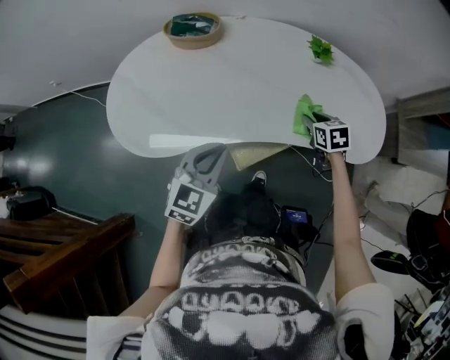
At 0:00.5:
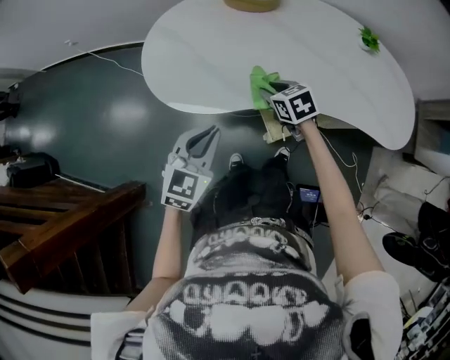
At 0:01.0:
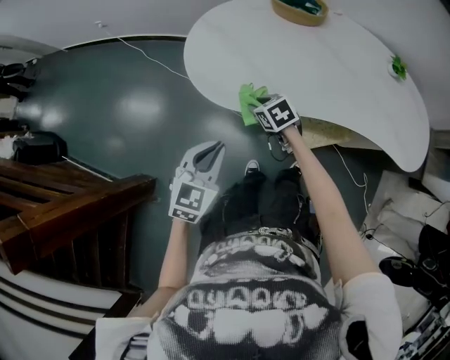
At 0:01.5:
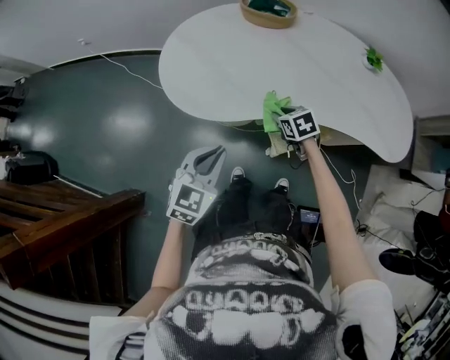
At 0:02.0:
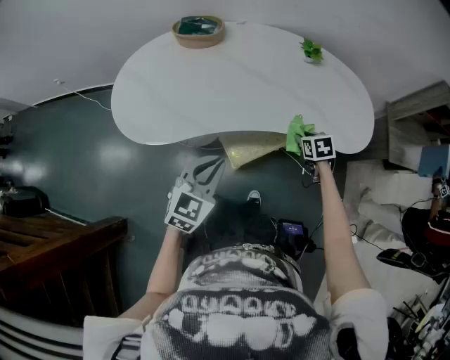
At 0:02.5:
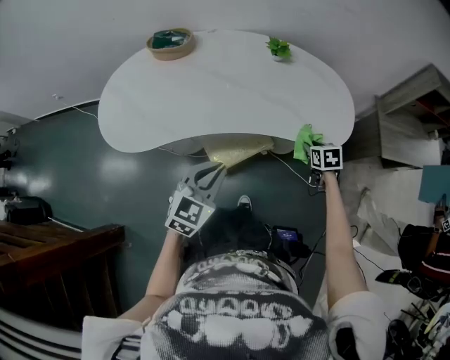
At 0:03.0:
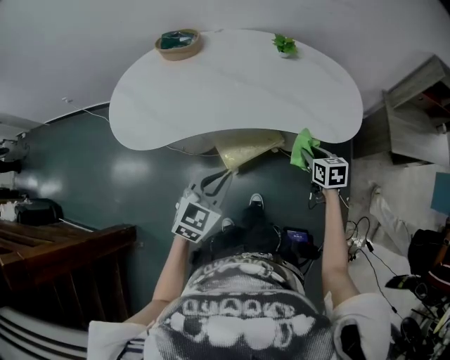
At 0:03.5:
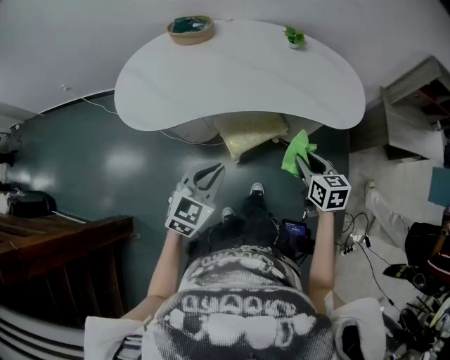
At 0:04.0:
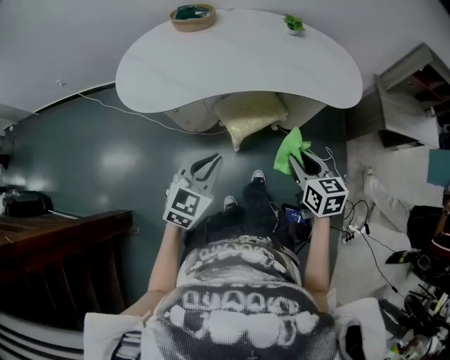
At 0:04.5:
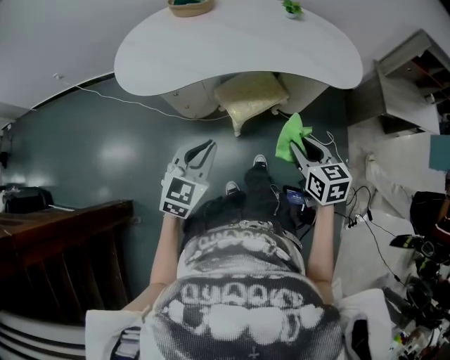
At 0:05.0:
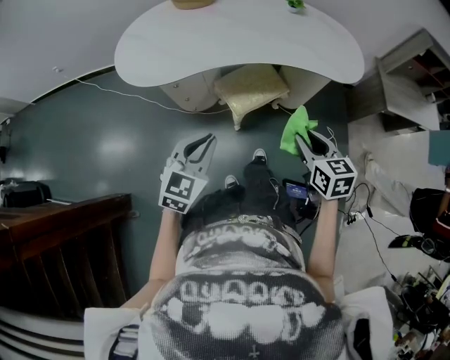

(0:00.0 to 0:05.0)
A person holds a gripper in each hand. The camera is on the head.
0:02.5 - 0:05.0: The left gripper goes roughly 25 cm backward and to the left, while the right gripper heads backward, to the left and upward, covering about 40 cm, and rotates roughly 20 degrees.

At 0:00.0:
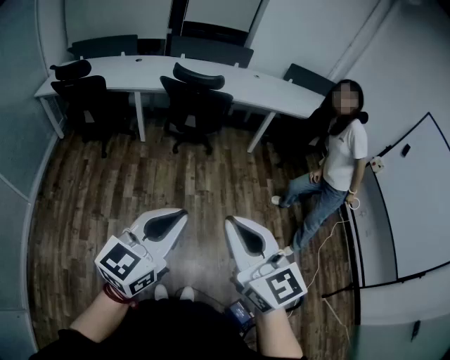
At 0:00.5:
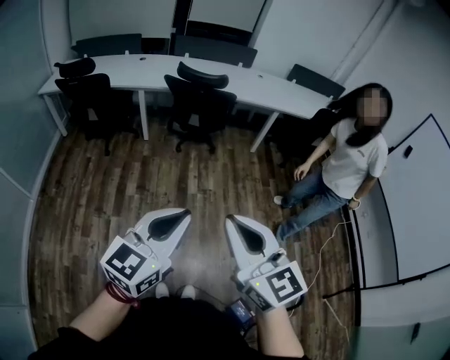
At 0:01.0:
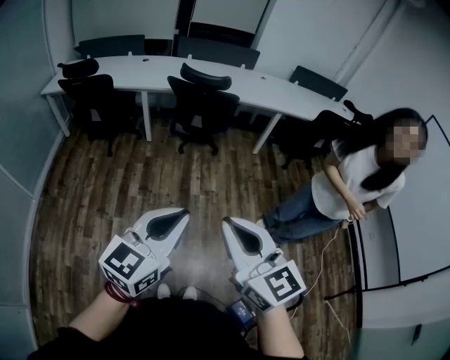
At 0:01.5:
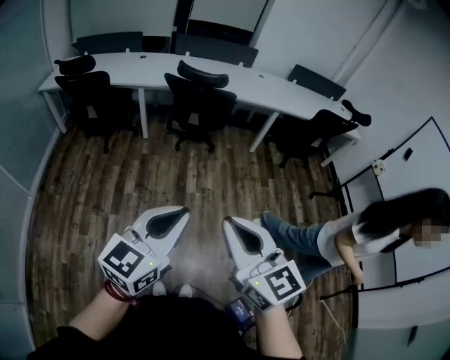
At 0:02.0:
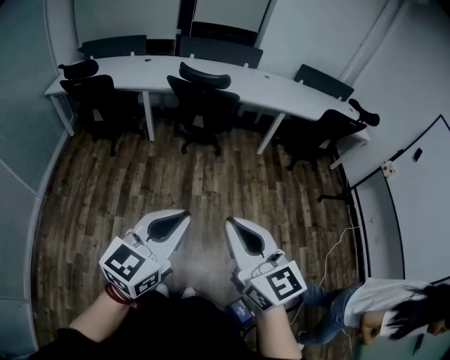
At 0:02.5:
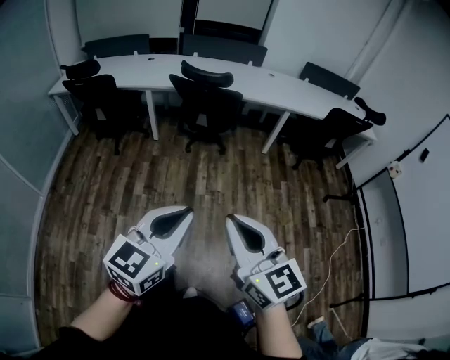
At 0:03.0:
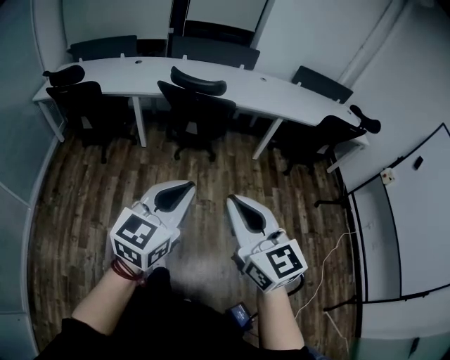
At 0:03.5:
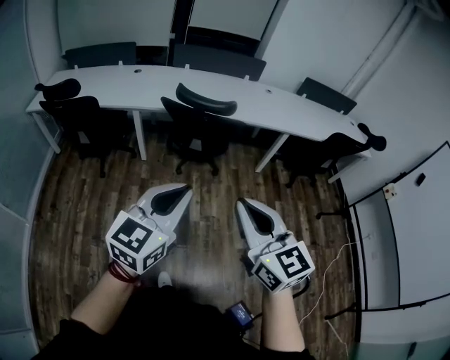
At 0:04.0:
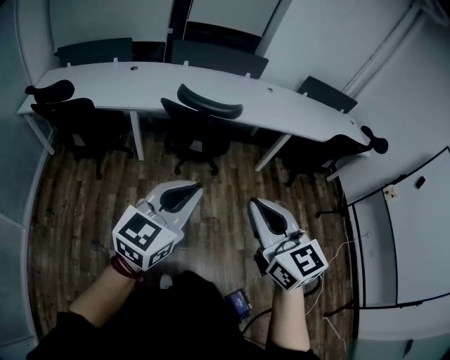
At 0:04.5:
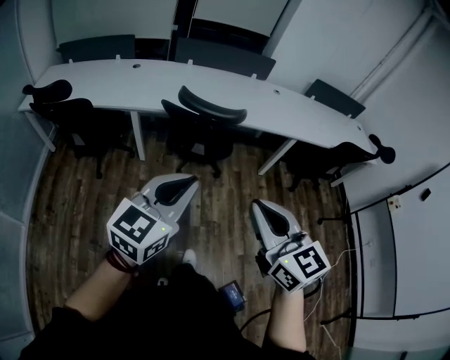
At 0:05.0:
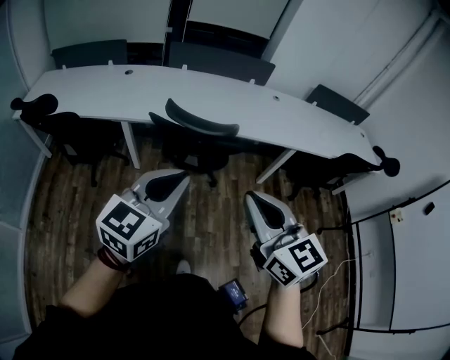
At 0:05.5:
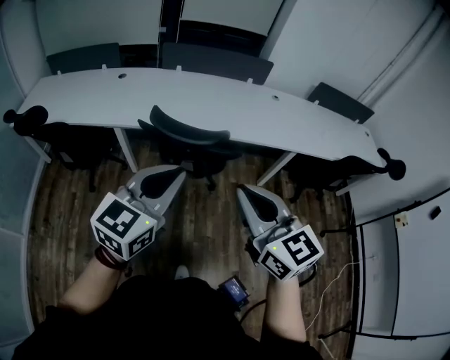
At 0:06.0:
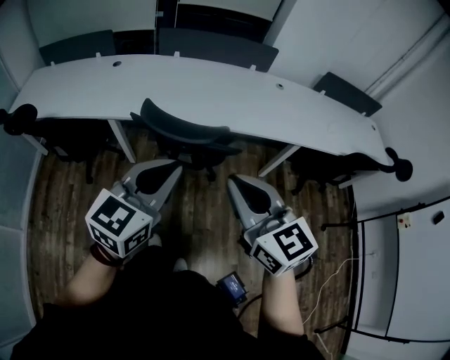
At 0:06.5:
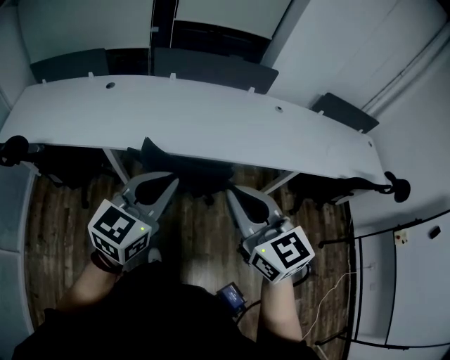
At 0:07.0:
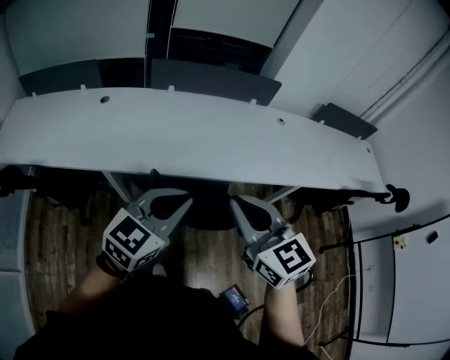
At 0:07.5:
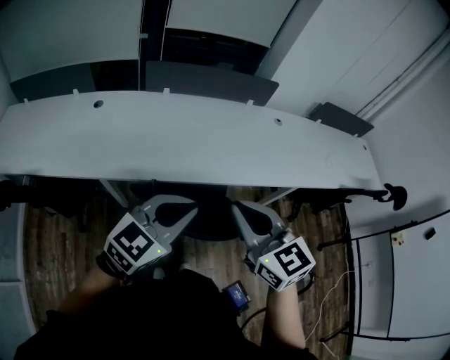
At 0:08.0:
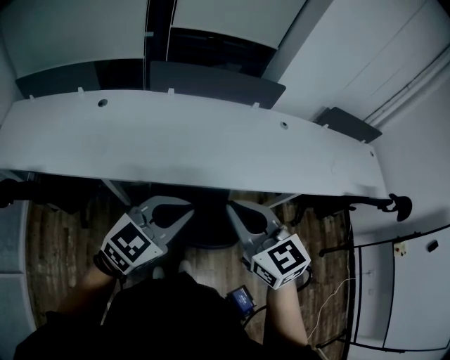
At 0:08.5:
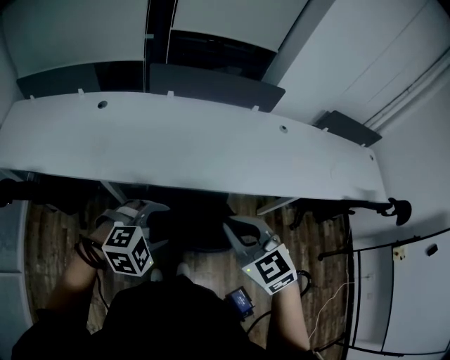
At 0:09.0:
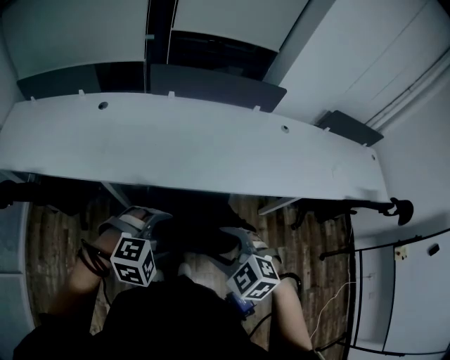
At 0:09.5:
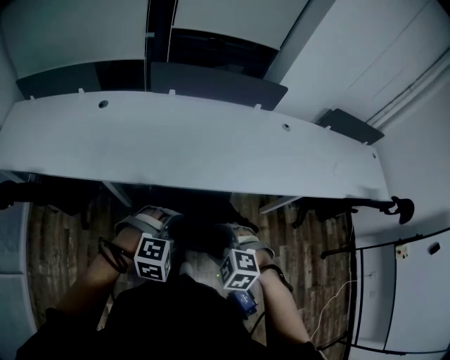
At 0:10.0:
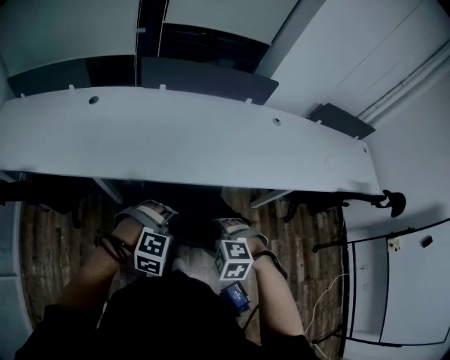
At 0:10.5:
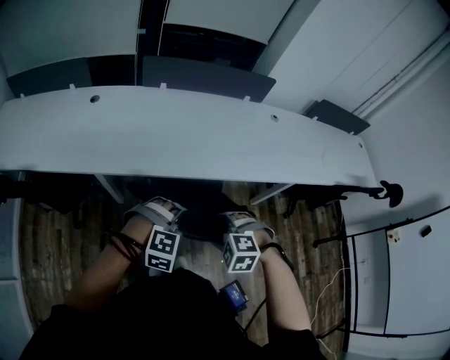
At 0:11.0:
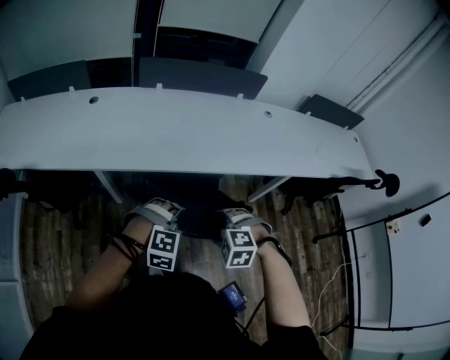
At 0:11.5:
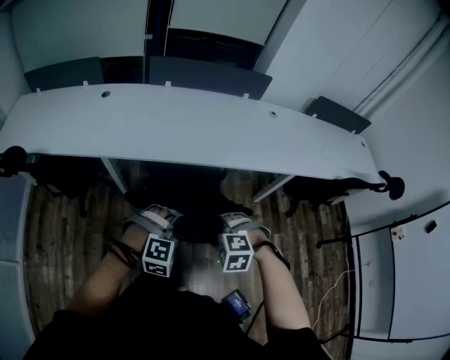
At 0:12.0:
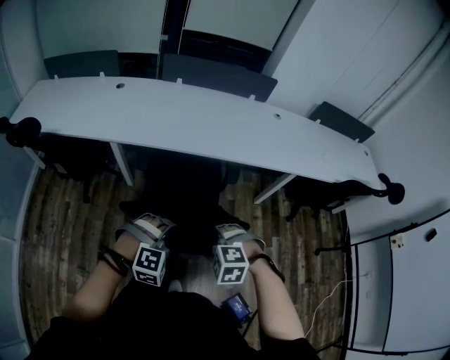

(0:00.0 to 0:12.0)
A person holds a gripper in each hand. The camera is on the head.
0:00.0 - 0:02.0: The left gripper goes approximately 5 cm to the right. The right gripper ends up about 5 cm from where it was.
0:02.0 - 0:04.0: Both grippers move forward, roughly 35 cm.
0:04.0 - 0:06.0: The grippers both shift forward by about 35 cm.
0:06.0 - 0:08.0: The right gripper moves forward and to the left, about 30 cm; the left gripper moves forward, approximately 25 cm, and swivels approximately 20 degrees.
0:08.0 - 0:10.0: The two grippers go approximately 20 cm downward. The right gripper angles its fingers downward, by about 50 degrees, and opens up. The left gripper angles its fingers downward, by some 40 degrees, and opens.
0:10.0 - 0:12.0: Both grippers travel together backward, roughly 25 cm.

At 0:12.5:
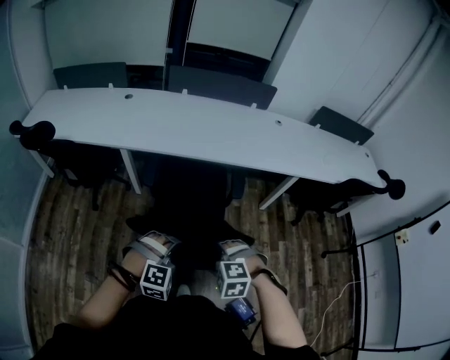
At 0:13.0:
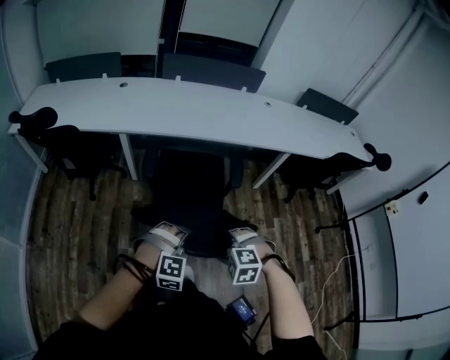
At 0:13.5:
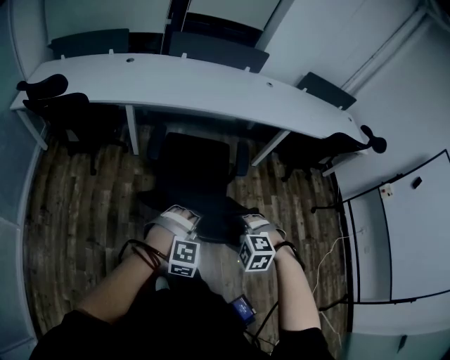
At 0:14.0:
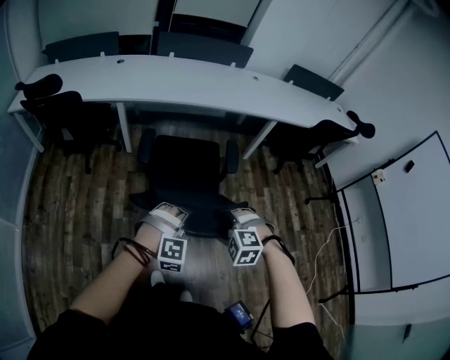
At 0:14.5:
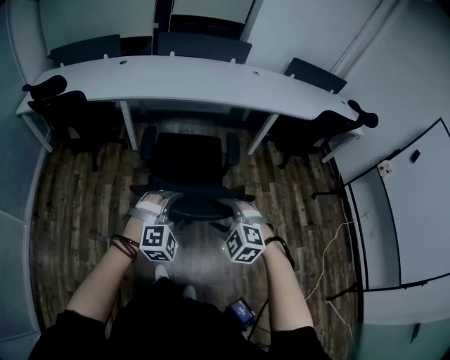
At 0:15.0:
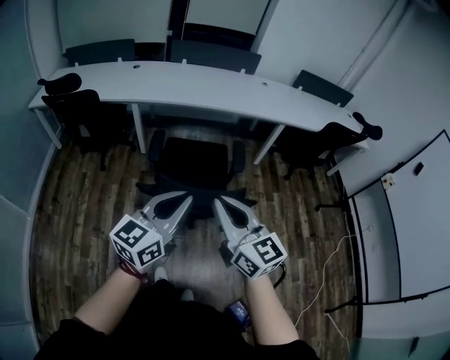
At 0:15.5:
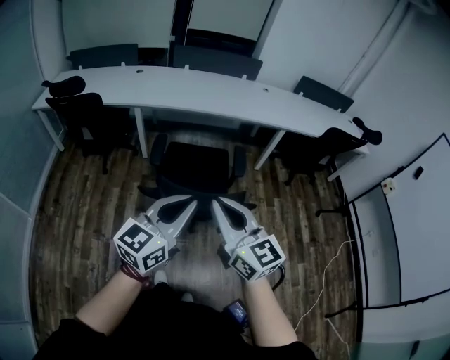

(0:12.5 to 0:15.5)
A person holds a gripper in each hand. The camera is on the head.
0:12.5 - 0:14.0: The grippers both shift backward by roughly 25 cm.
0:14.0 - 0:15.5: Both grippers move upward, approximately 25 cm. The right gripper tips its fingers upward by approximately 60 degrees, and closes. The left gripper rotates around the line of its fingers by approximately 80 degrees, counterclockwise from behind, and closes.

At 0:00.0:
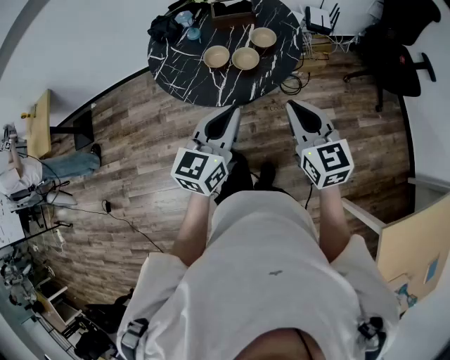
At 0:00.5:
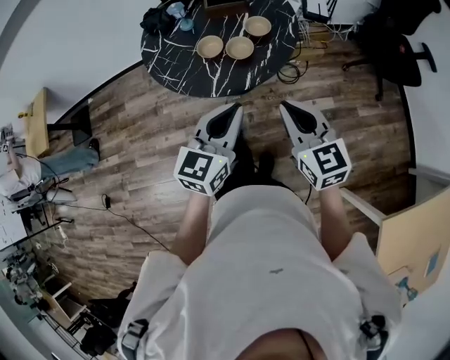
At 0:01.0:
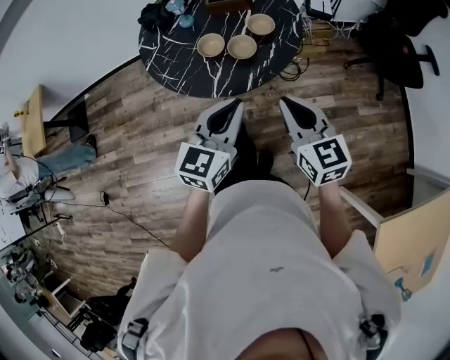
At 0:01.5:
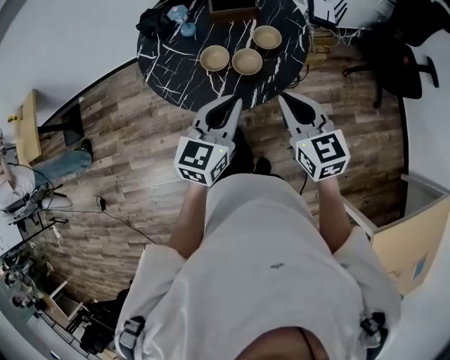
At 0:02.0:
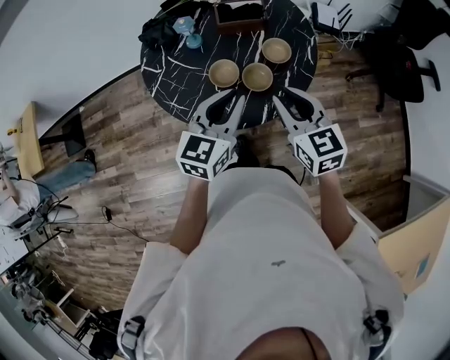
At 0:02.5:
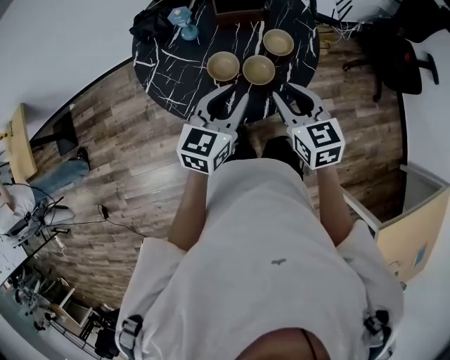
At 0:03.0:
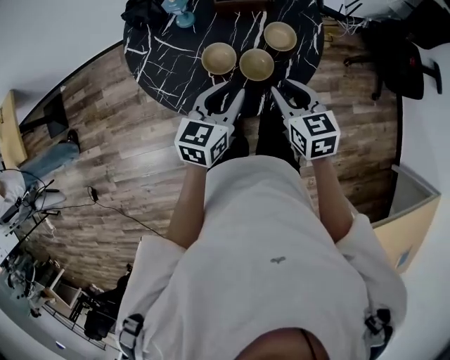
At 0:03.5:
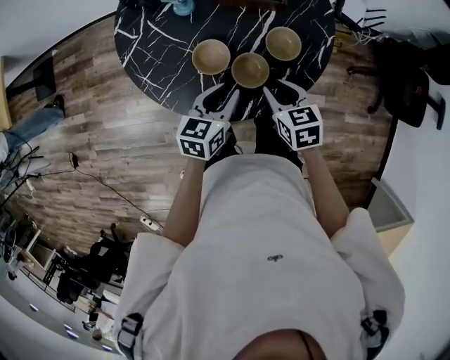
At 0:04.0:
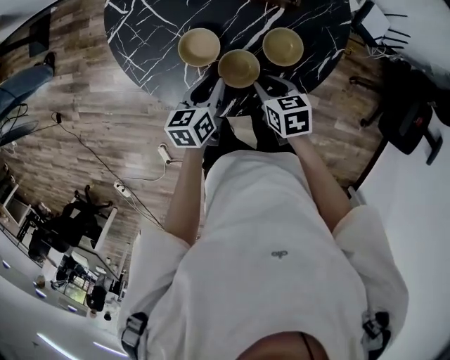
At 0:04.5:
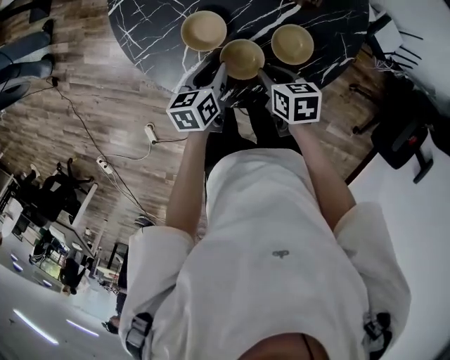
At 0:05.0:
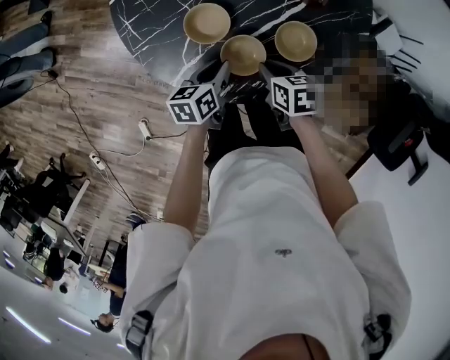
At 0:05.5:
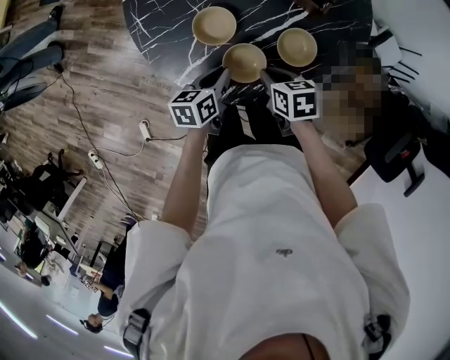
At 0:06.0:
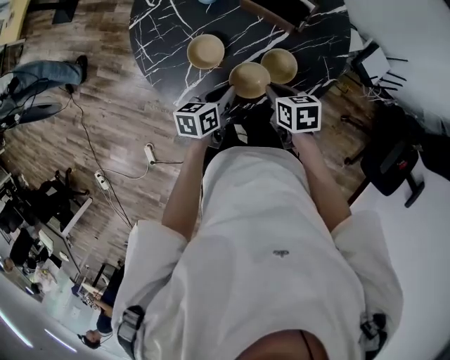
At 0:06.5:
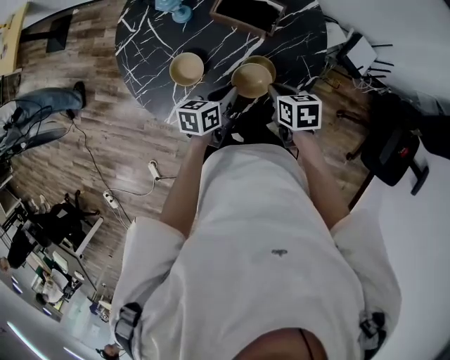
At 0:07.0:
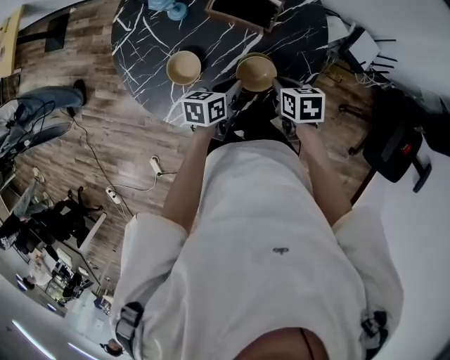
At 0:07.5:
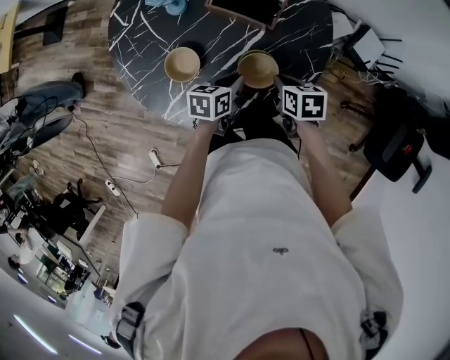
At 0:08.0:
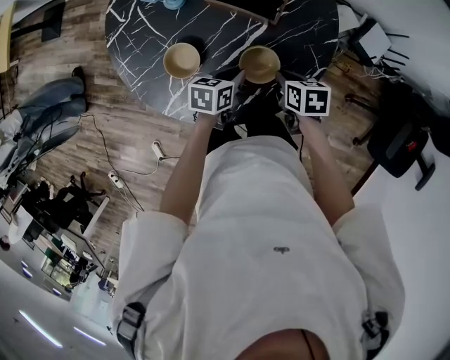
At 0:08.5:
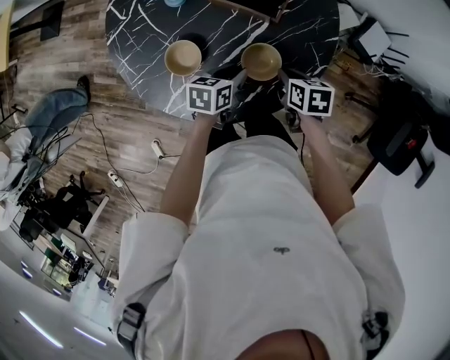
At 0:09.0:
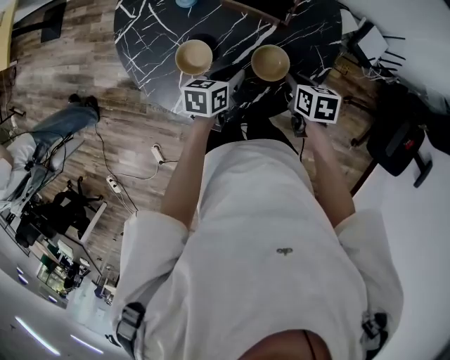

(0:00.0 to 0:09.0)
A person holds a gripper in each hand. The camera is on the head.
0:00.0 - 0:02.0: The left gripper goes about 20 cm forward, while the right gripper goes about 20 cm forward and to the left.
0:02.0 - 0:04.5: The grippers both shift downward by roughly 30 cm. The right gripper tilts its fingers some 30 degrees downward. Meanwhile the left gripper changes its angle by about 60 degrees.
0:04.5 - 0:07.0: Both grippers travel together to the right, some 15 cm.
0:07.0 - 0:09.0: The grippers move only a little.
